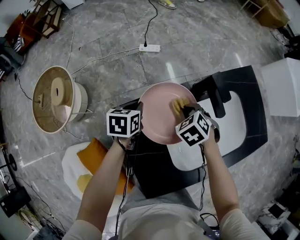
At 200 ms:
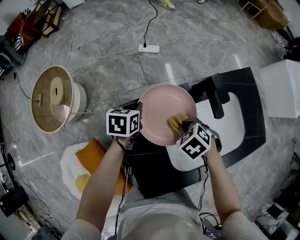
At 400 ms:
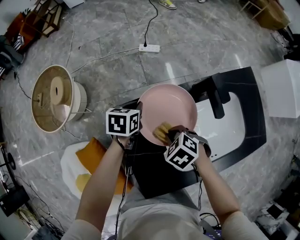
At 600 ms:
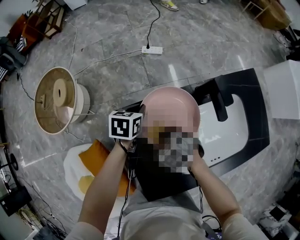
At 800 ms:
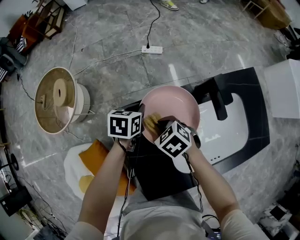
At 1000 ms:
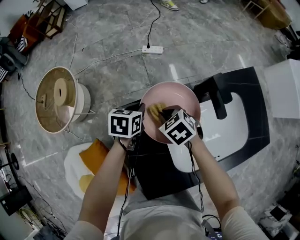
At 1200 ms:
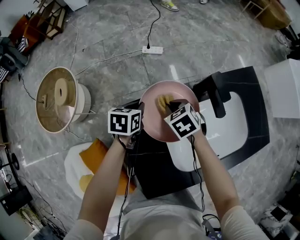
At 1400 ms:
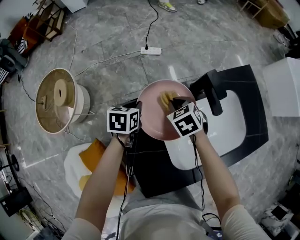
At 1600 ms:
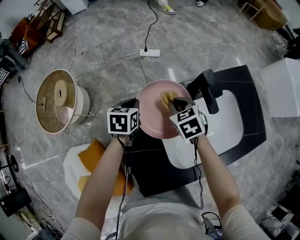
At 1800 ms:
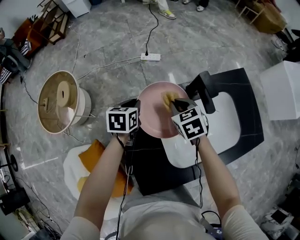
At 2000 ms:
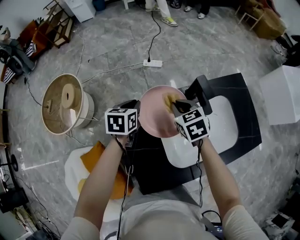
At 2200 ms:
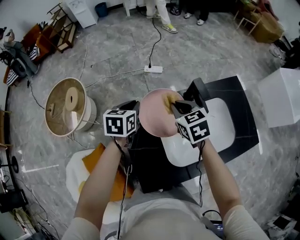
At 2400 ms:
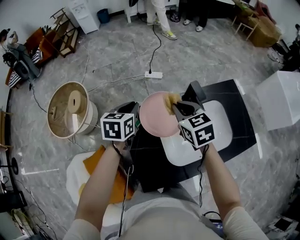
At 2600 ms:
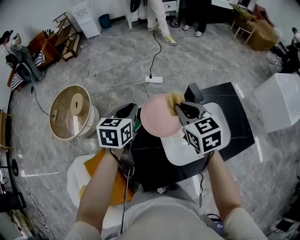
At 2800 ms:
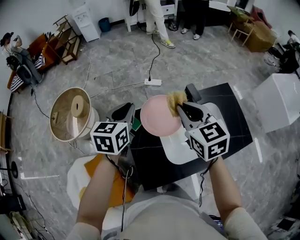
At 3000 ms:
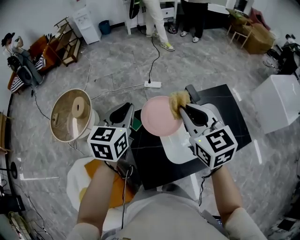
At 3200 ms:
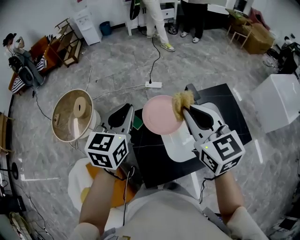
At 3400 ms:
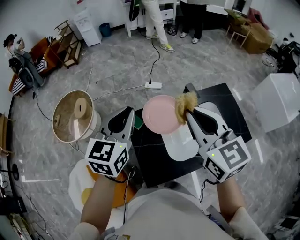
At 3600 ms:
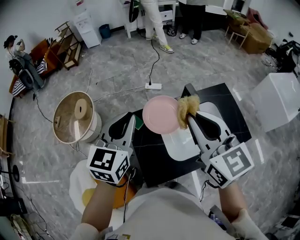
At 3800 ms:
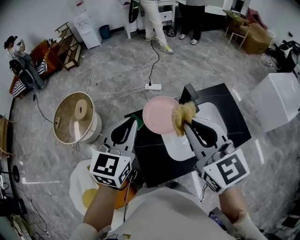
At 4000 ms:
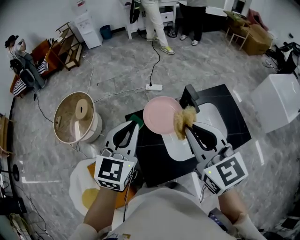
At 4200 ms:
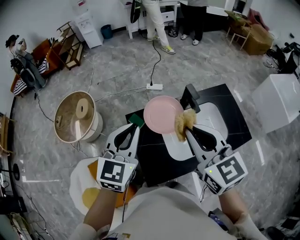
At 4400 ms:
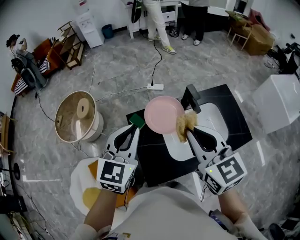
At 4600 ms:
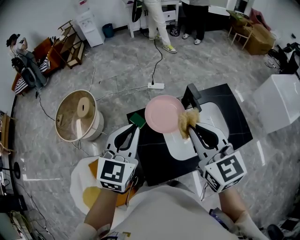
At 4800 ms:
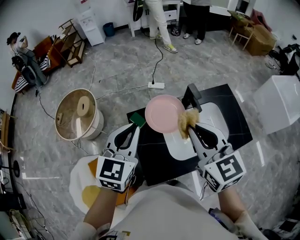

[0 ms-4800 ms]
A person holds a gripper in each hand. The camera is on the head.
0 ms to 1600 ms: The right gripper changes its angle by approximately 20 degrees.
1600 ms to 3200 ms: The grippers both shift upward by approximately 35 cm. The left gripper tilts its fingers some 30 degrees upward. Meanwhile the right gripper angles its fingers upward, by about 40 degrees.
3200 ms to 4800 ms: The two grippers go about 5 cm backward.

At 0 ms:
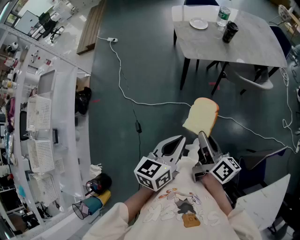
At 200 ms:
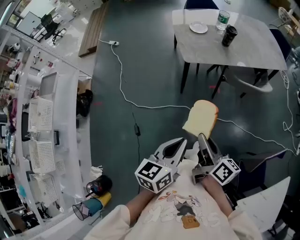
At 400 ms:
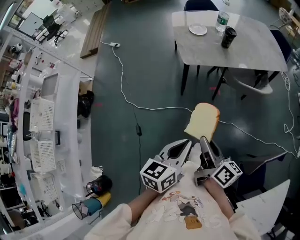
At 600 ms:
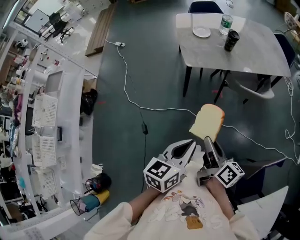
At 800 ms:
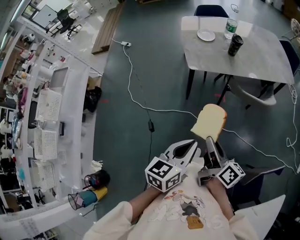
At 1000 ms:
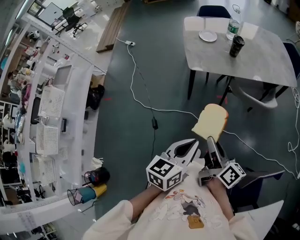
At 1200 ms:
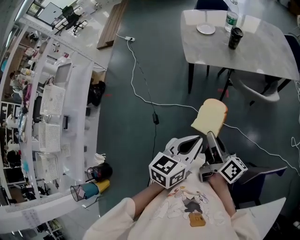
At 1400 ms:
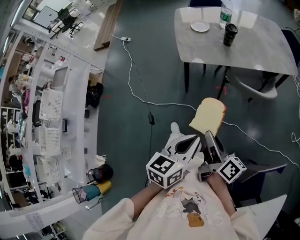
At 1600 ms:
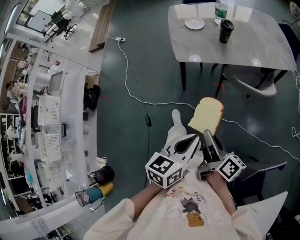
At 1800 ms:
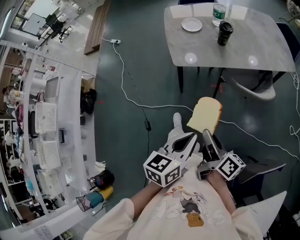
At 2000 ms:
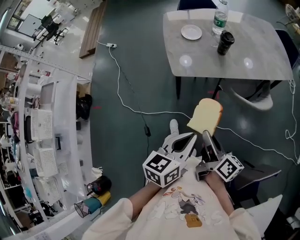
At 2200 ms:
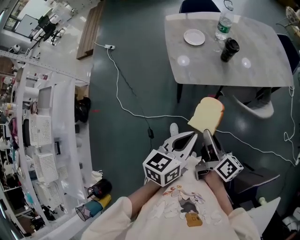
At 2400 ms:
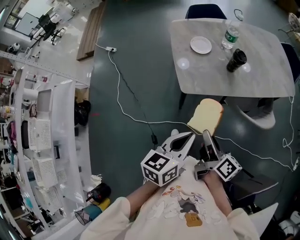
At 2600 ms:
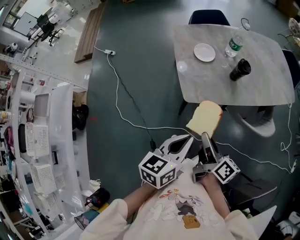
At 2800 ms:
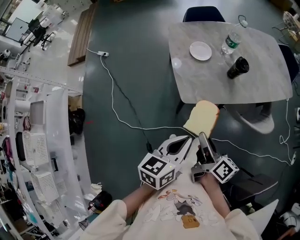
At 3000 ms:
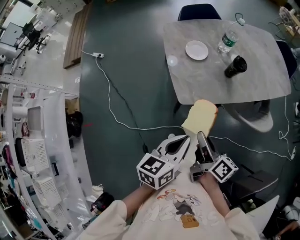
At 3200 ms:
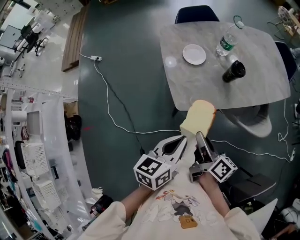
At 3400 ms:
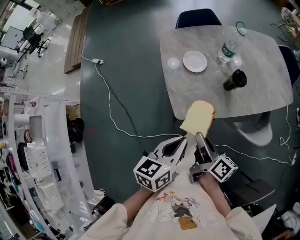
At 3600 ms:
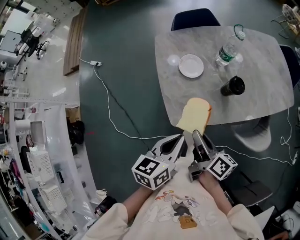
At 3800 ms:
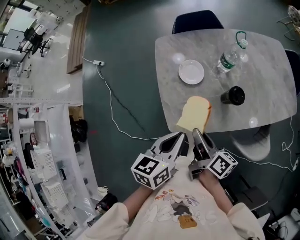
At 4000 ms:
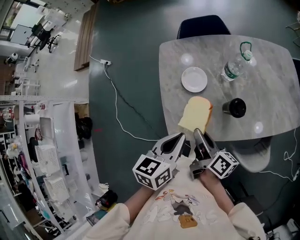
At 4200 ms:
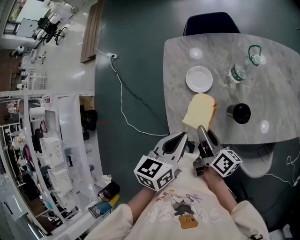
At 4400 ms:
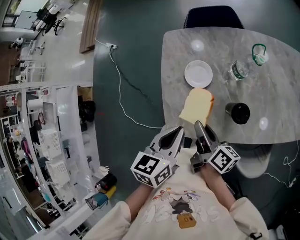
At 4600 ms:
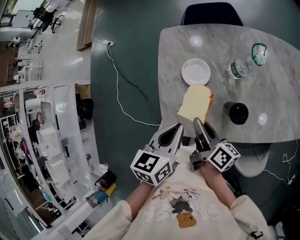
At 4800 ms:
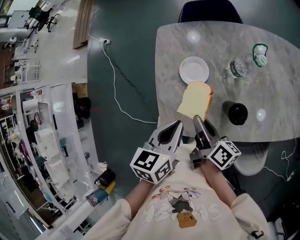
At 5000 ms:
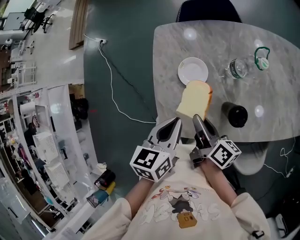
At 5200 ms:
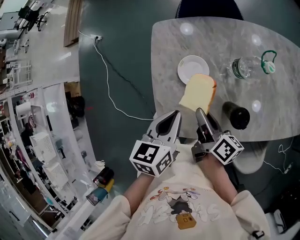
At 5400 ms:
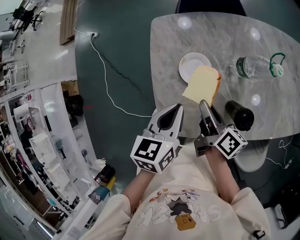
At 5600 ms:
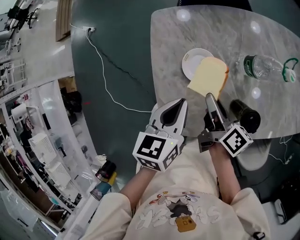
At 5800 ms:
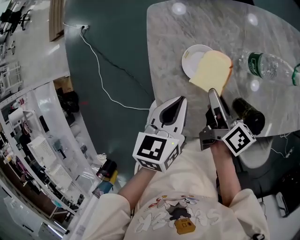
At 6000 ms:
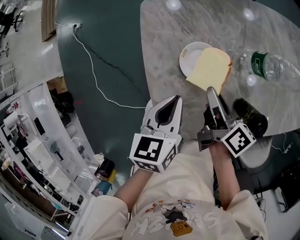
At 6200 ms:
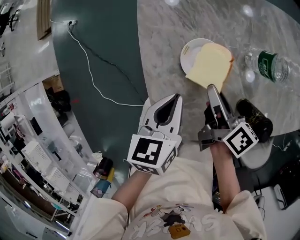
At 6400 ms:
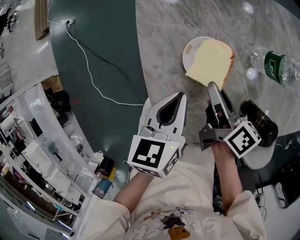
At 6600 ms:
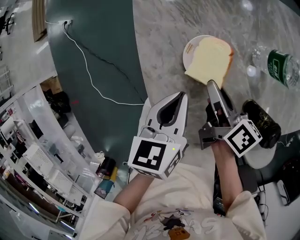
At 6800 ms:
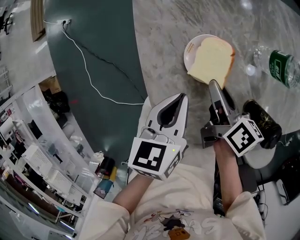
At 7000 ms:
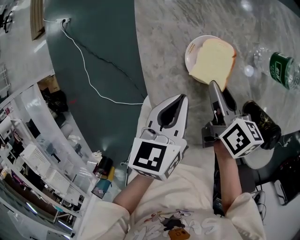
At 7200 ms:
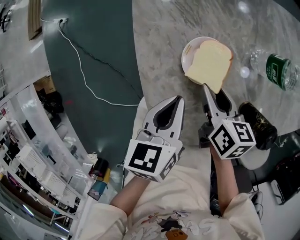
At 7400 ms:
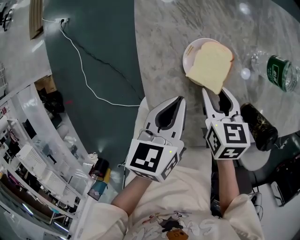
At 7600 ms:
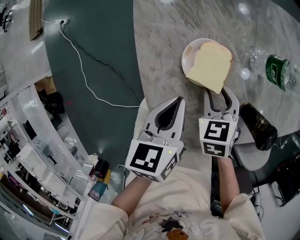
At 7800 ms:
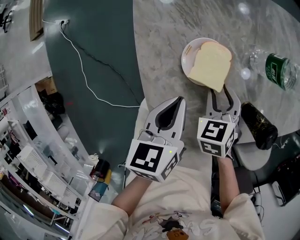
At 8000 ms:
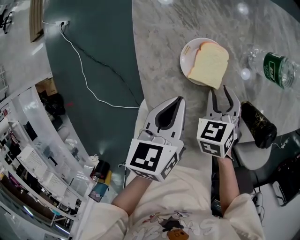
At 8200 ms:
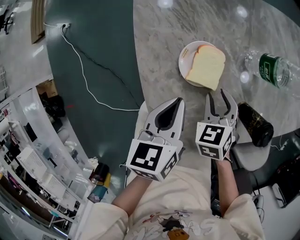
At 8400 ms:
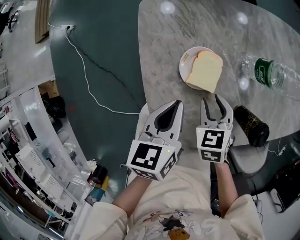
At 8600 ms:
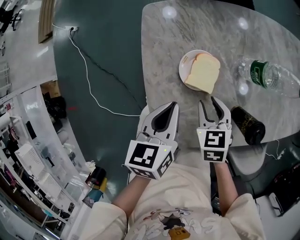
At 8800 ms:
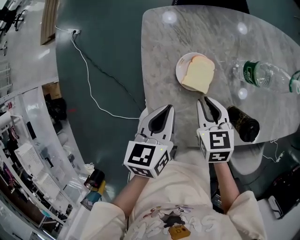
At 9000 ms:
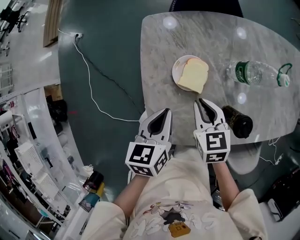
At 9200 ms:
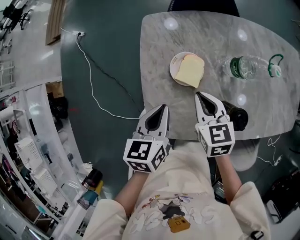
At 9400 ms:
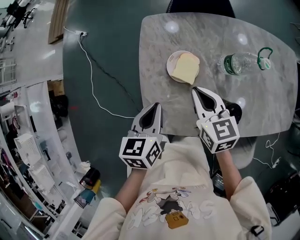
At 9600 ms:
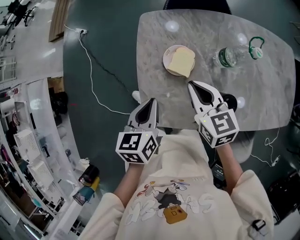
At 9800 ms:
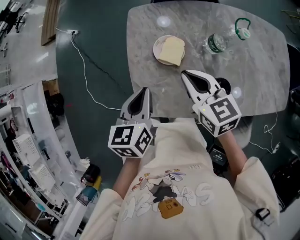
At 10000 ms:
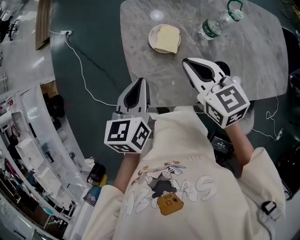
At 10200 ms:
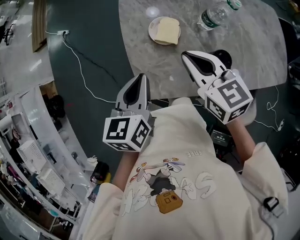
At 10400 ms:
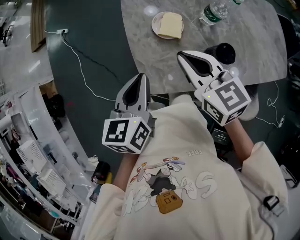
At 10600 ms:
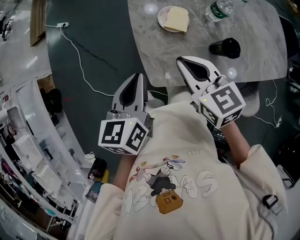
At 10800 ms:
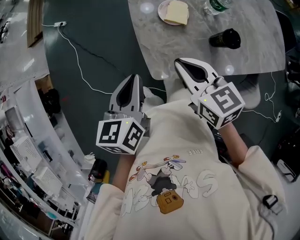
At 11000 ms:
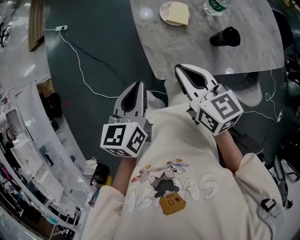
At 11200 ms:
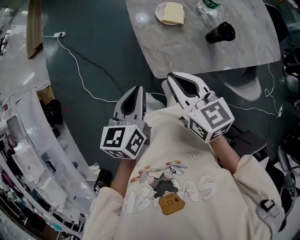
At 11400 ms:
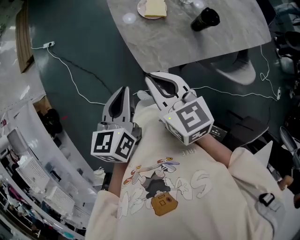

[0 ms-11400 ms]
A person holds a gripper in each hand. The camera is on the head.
0 ms to 1400 ms: Both grippers travel together to the right, roughly 15 cm.
1400 ms to 2800 ms: The two grippers go roughly 35 cm forward and to the left.
2800 ms to 4200 ms: The two grippers go about 30 cm forward.
4200 ms to 5600 ms: The two grippers go some 15 cm forward and downward.
5600 ms to 7200 ms: Both grippers move downward, roughly 10 cm. The right gripper changes its angle by roughly 30 degrees.
7200 ms to 8600 ms: The right gripper swivels roughly 40 degrees.
8600 ms to 10000 ms: The right gripper moves upward, roughly 20 cm, changes its angle by some 30 degrees, and closes. Meanwhile the left gripper heads upward and backward, covering about 15 cm.
10000 ms to 11400 ms: The right gripper shifts roughly 30 cm to the left and backward. Meanwhile the left gripper goes some 25 cm backward and to the left.

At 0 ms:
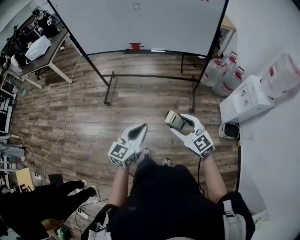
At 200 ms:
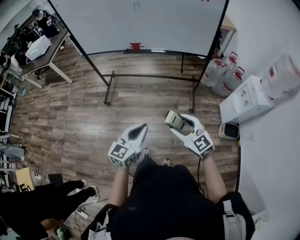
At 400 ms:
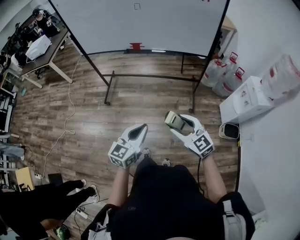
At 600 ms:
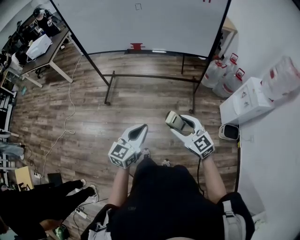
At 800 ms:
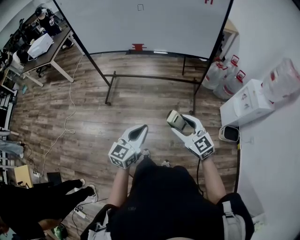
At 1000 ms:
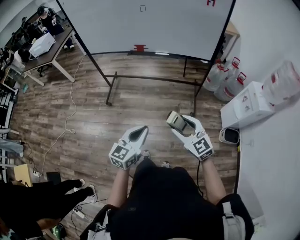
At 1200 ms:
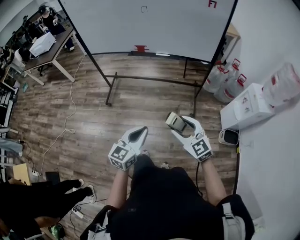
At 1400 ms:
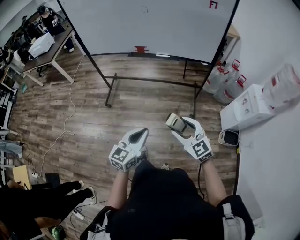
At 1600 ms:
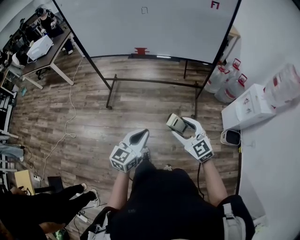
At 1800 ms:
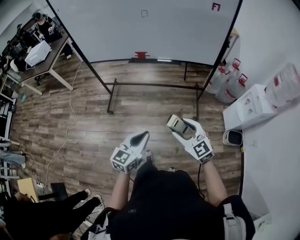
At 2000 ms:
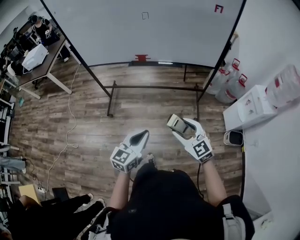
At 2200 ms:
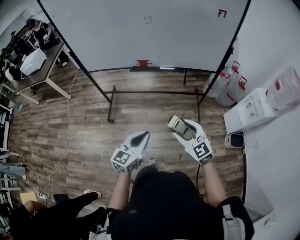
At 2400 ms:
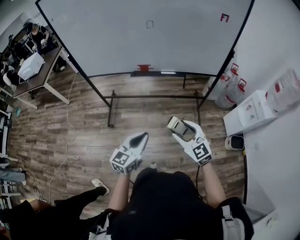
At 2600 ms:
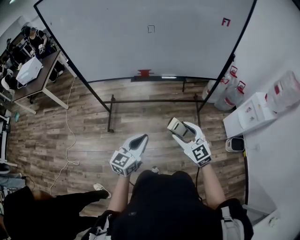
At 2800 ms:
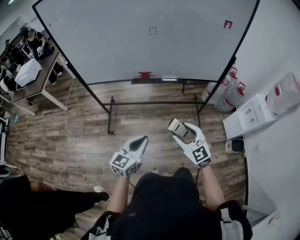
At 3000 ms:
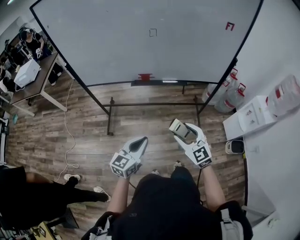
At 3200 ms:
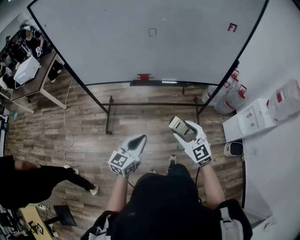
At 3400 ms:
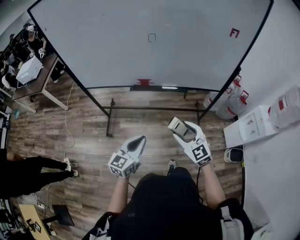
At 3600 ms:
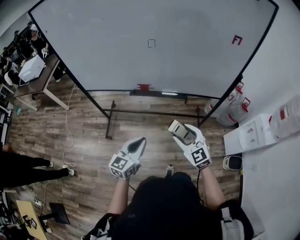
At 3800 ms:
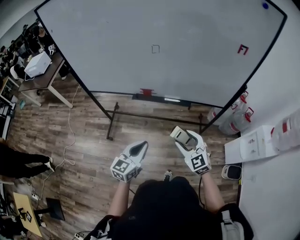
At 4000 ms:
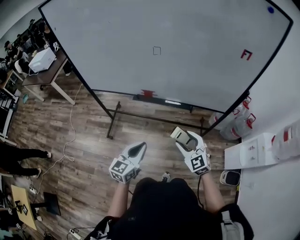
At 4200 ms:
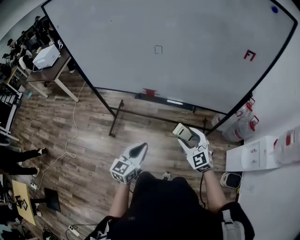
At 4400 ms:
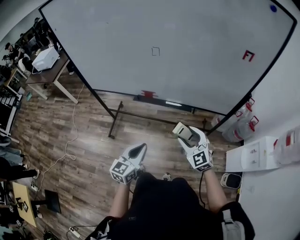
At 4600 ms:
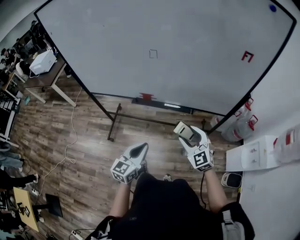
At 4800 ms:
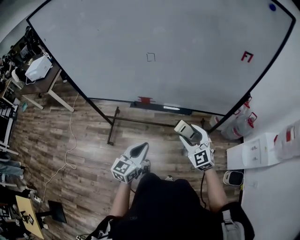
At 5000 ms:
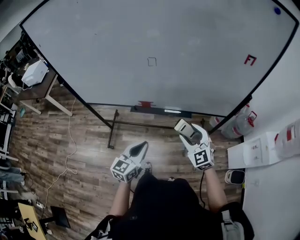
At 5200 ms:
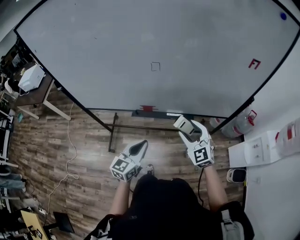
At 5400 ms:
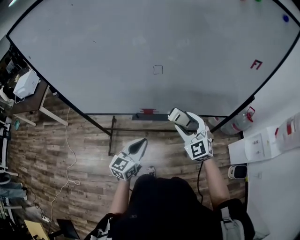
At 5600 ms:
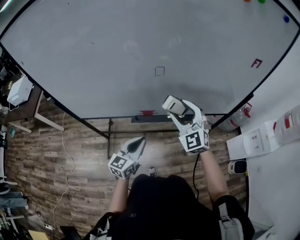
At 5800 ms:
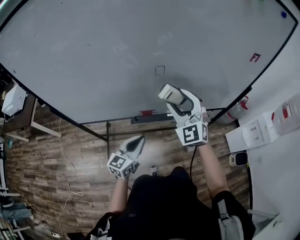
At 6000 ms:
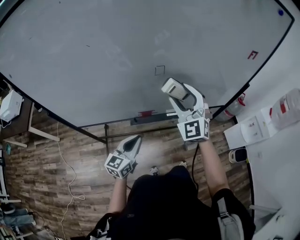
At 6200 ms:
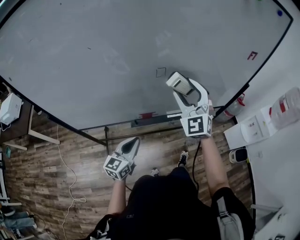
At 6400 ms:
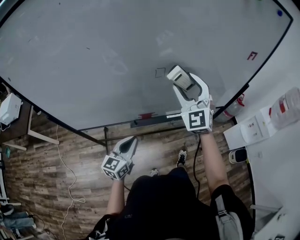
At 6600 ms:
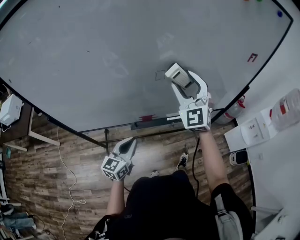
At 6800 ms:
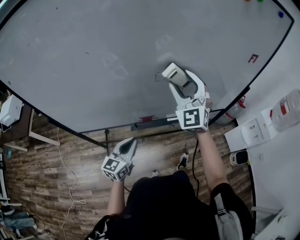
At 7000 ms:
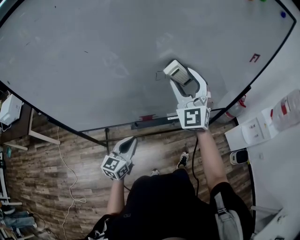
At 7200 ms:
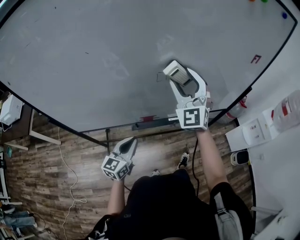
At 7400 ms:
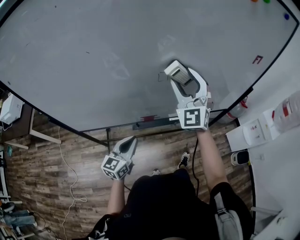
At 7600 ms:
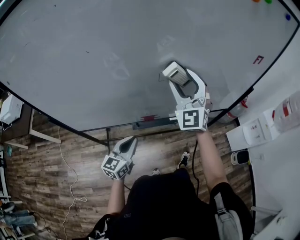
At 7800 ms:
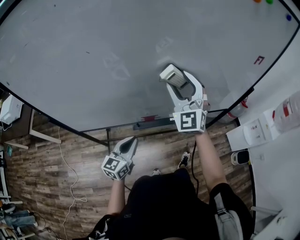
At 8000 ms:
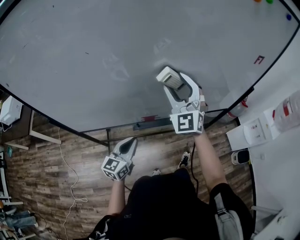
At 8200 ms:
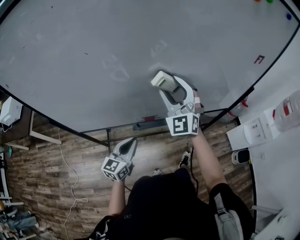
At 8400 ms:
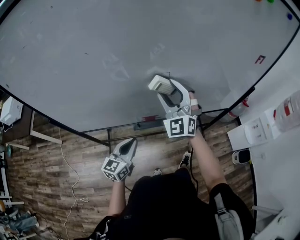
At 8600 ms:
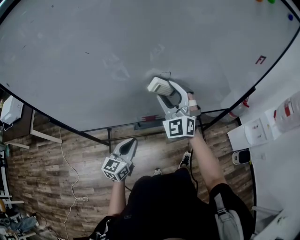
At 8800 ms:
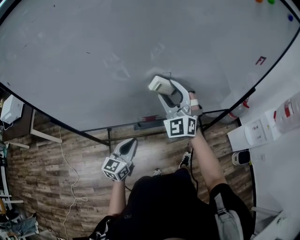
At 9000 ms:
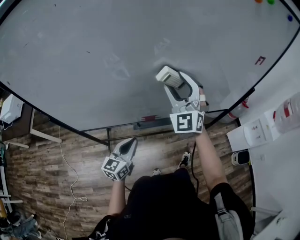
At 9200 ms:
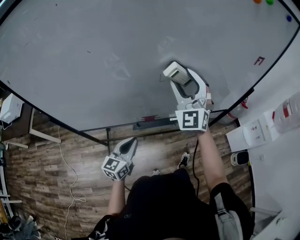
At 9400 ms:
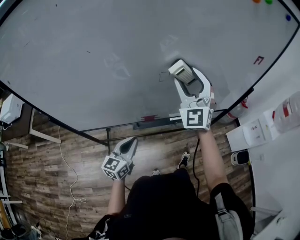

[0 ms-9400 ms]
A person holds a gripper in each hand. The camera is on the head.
0 ms to 1600 ms: The right gripper ends up about 5 cm from where it was.
1600 ms to 3200 ms: Both grippers travel together forward and to the left, about 25 cm.
3200 ms to 4800 ms: The grippers both shift forward and to the right by approximately 20 cm.
4800 ms to 6200 ms: The left gripper shifts roughly 25 cm to the left and forward. The right gripper shifts some 30 cm forward, upward and to the left, and swivels about 30 degrees.
6200 ms to 7800 ms: The right gripper ends up approximately 5 cm from where it was.
